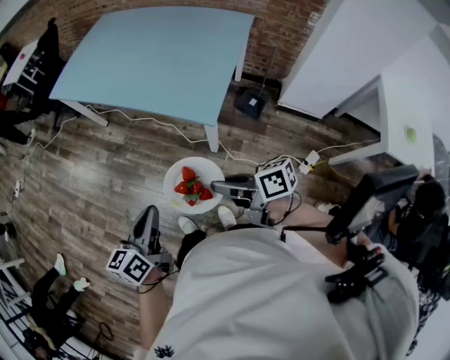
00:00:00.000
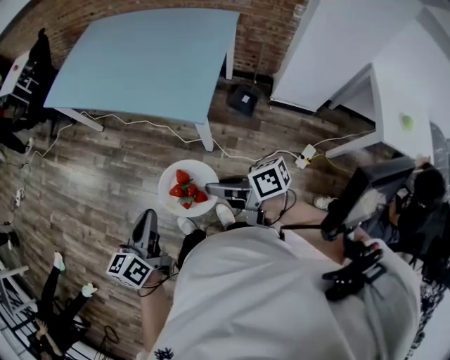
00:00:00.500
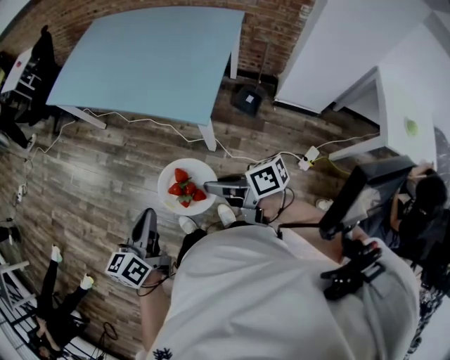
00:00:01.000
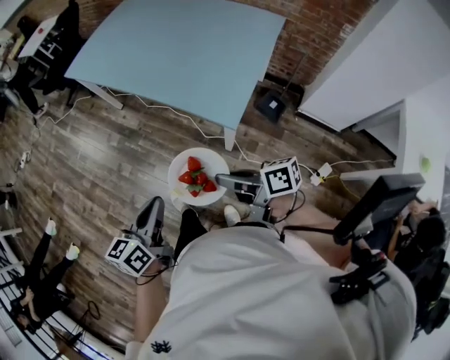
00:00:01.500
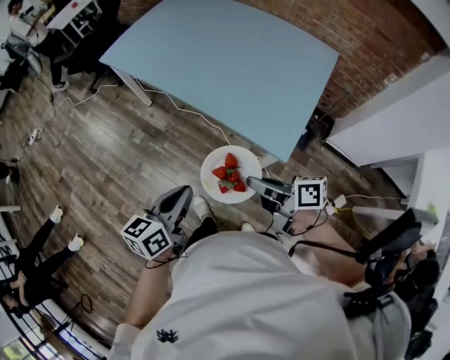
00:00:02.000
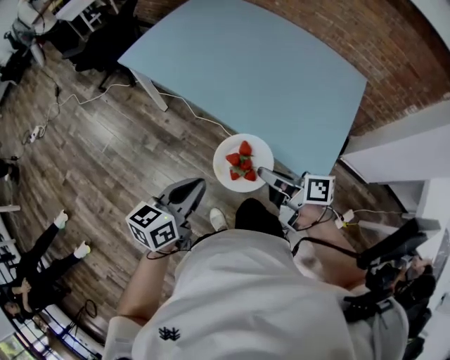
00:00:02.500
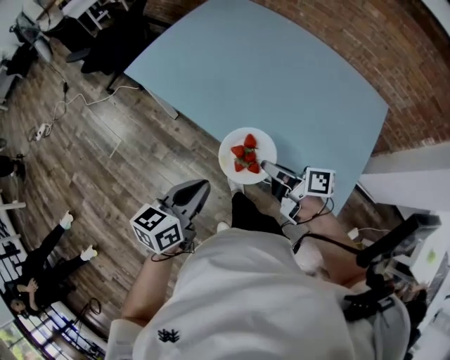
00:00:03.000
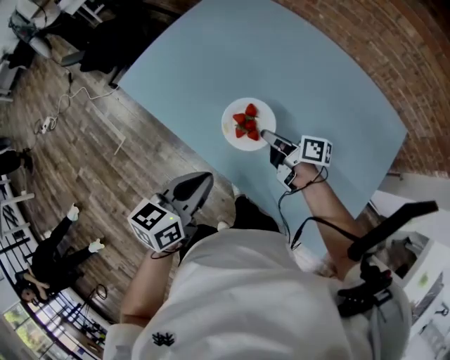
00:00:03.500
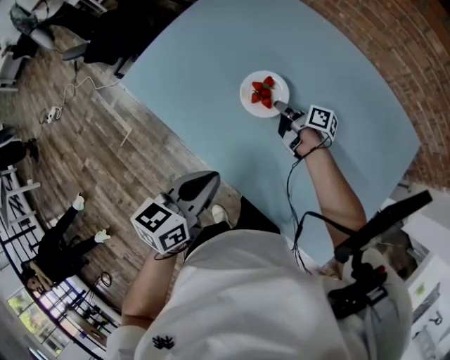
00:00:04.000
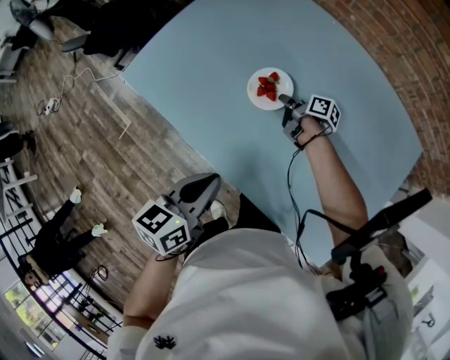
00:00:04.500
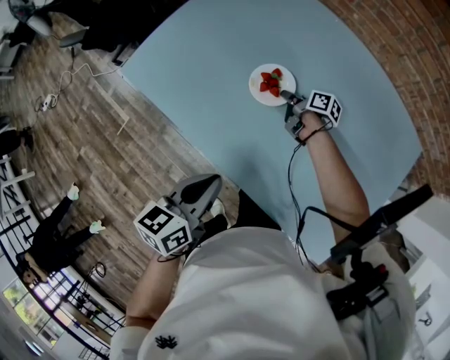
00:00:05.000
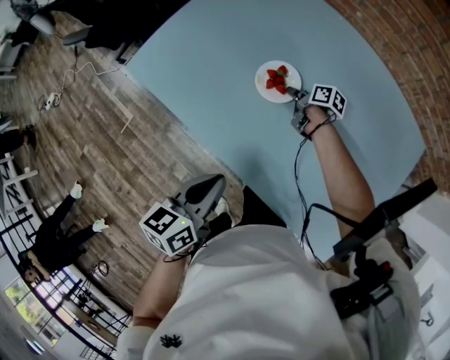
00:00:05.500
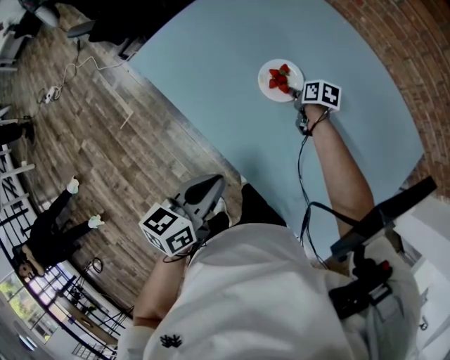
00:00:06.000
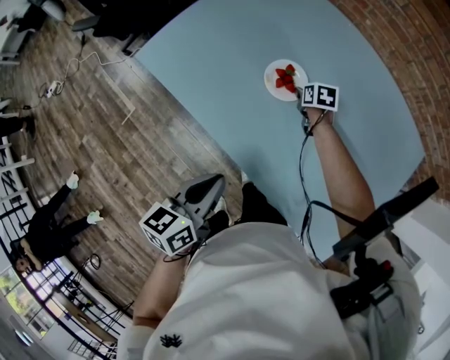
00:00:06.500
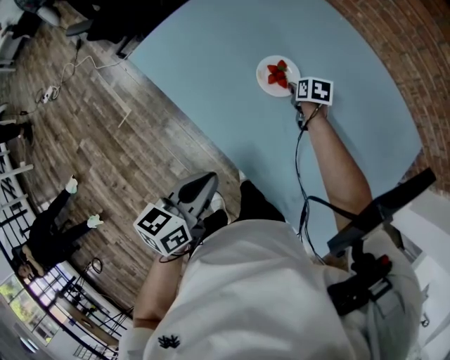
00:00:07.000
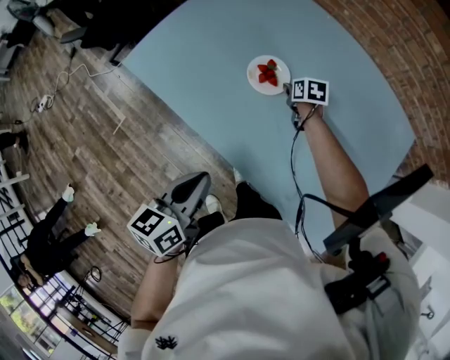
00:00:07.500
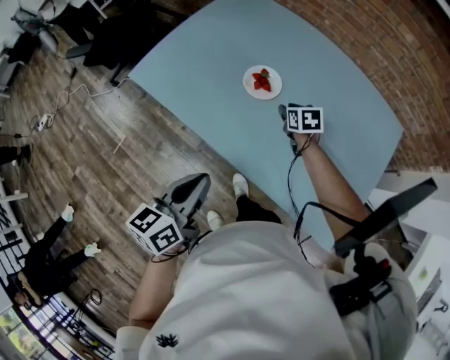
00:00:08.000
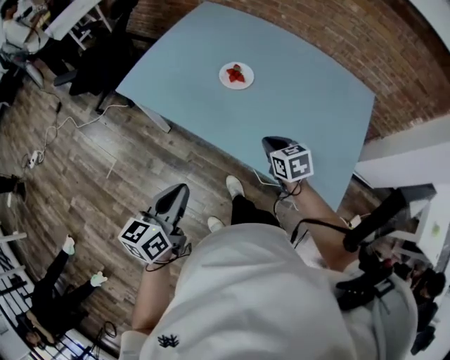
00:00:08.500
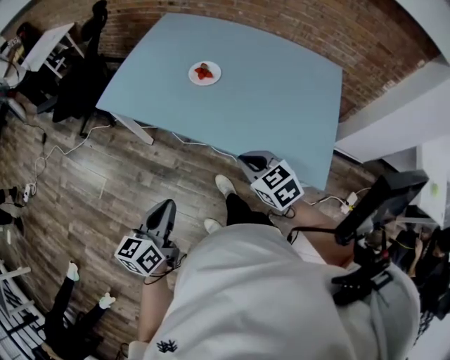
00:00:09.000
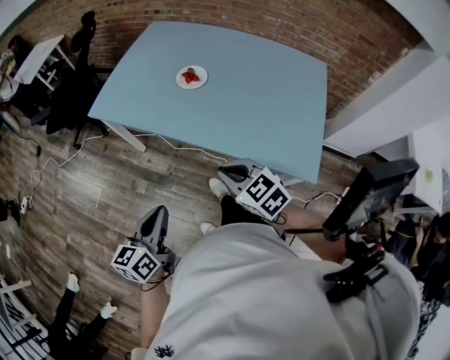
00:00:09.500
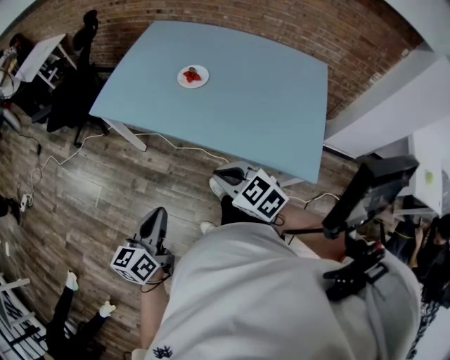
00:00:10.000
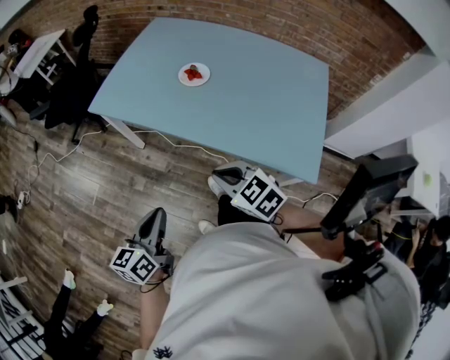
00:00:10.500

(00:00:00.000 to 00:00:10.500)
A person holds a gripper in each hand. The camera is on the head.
00:00:00.000 - 00:00:02.000: Both grippers travel together forward, some 15 cm.
00:00:02.000 - 00:00:04.000: The pair of grippers is taken forward, approximately 60 cm. The right gripper swivels approximately 30 degrees.
00:00:04.000 - 00:00:06.500: The right gripper ends up about 5 cm from where it was, angles its fingers downward, by roughly 40 degrees, and opens up; the left gripper shifts about 5 cm backward.
00:00:06.500 - 00:00:08.500: The right gripper is displaced backward and upward by some 35 cm, and closes up; the left gripper heads backward, covering approximately 15 cm.
00:00:08.500 - 00:00:10.500: The right gripper shifts roughly 25 cm backward, to the left and upward, and turns by some 20 degrees; the left gripper shifts some 10 cm backward.

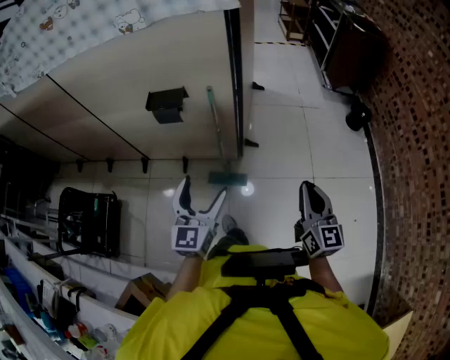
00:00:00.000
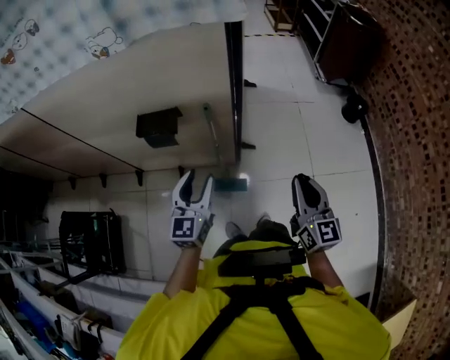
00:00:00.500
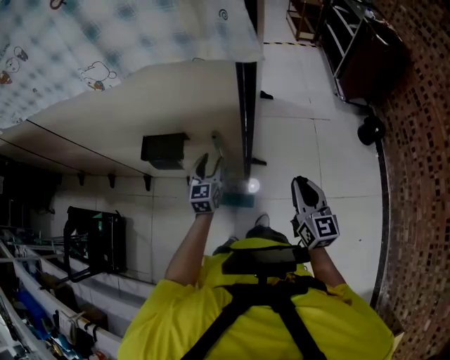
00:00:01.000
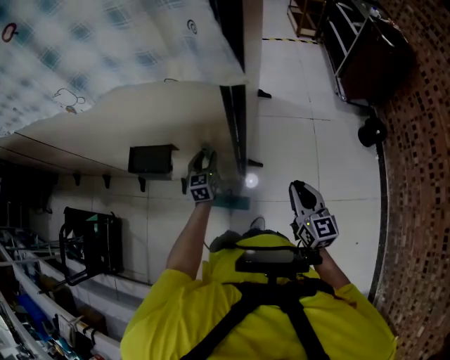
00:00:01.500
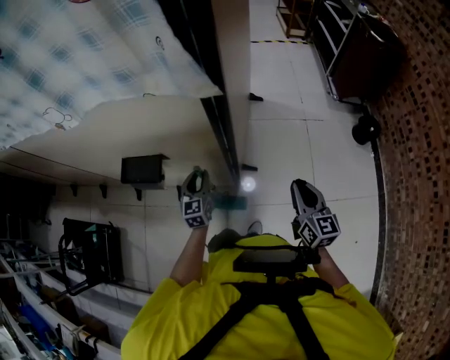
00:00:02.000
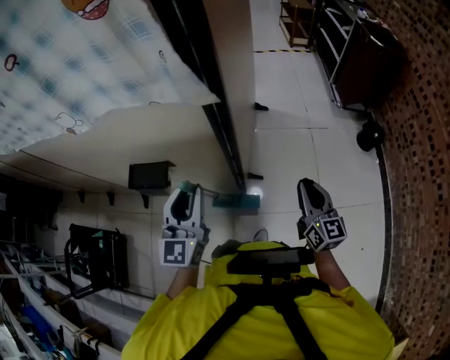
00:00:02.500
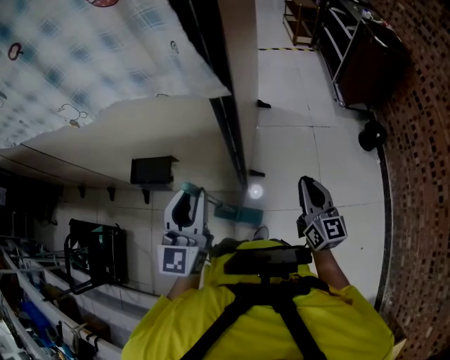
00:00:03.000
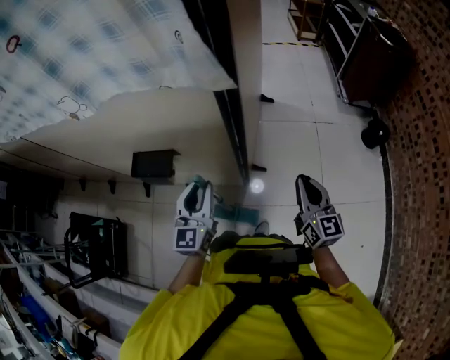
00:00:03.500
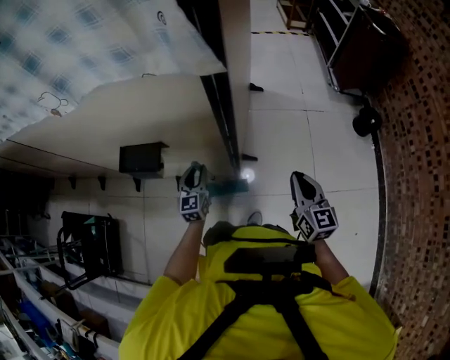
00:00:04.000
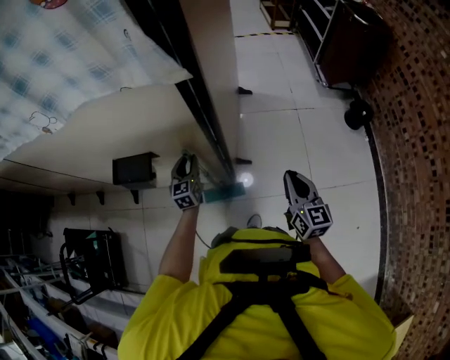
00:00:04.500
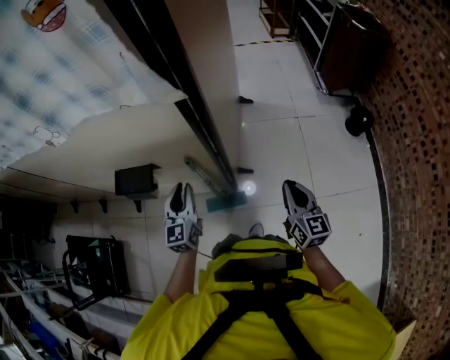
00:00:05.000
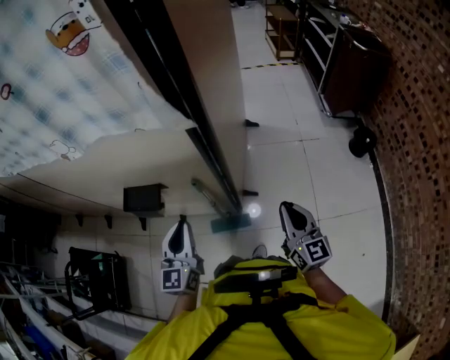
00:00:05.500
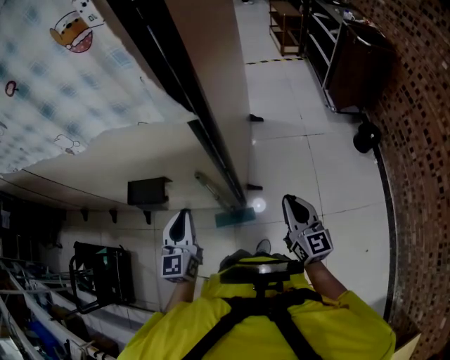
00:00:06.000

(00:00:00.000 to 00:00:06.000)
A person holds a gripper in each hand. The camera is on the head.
00:00:00.000 - 00:00:02.000: The left gripper heads forward and downward, covering about 50 cm, and closes its fingers. The right gripper goes roughly 35 cm forward.
00:00:02.000 - 00:00:04.000: The left gripper moves roughly 25 cm upward and comes back.
00:00:04.000 - 00:00:06.000: The left gripper is displaced upward and backward by about 20 cm, while the right gripper shifts by roughly 5 cm.

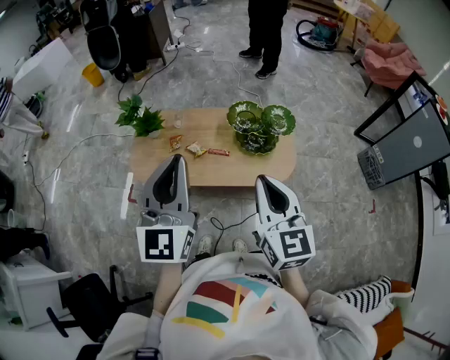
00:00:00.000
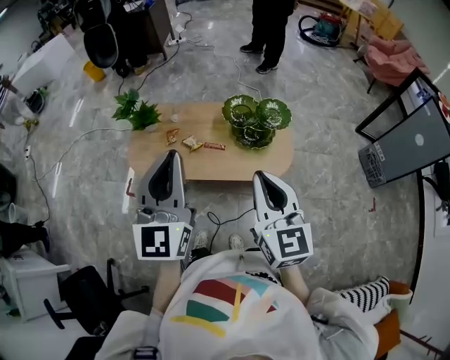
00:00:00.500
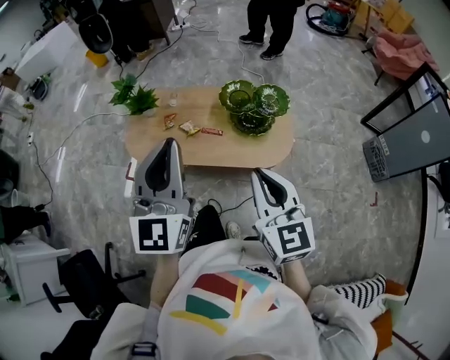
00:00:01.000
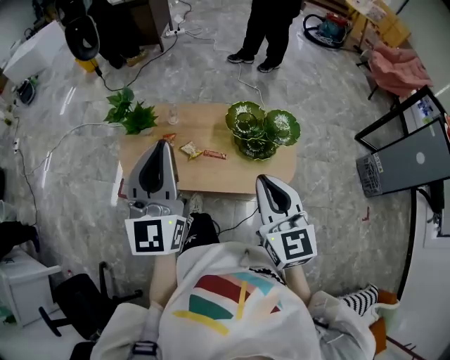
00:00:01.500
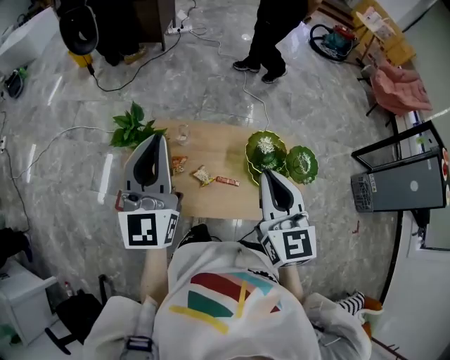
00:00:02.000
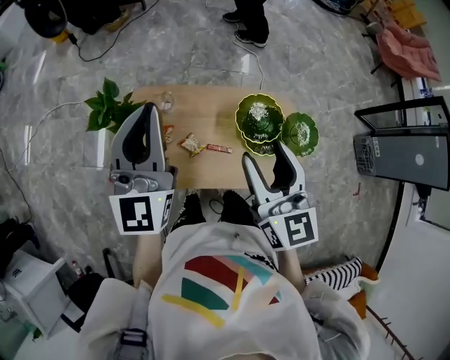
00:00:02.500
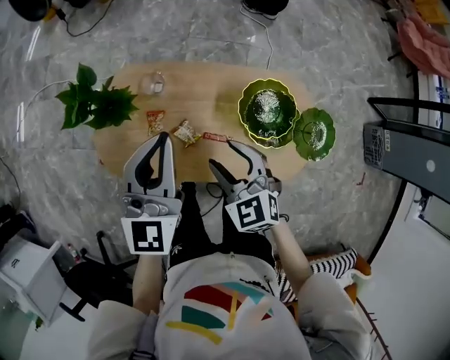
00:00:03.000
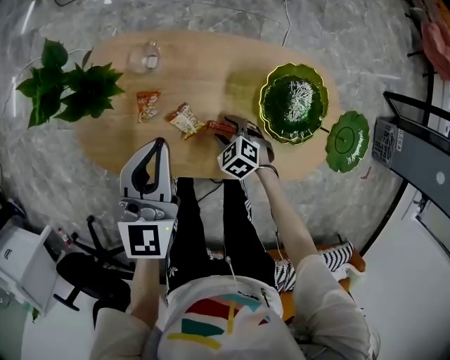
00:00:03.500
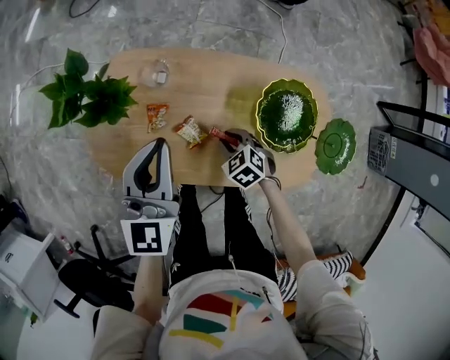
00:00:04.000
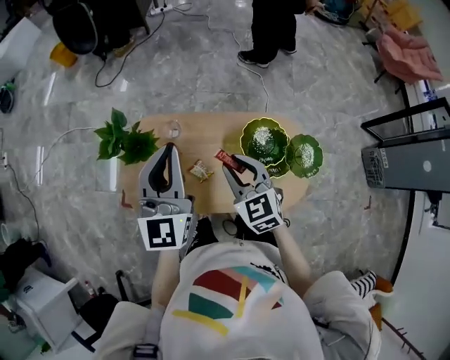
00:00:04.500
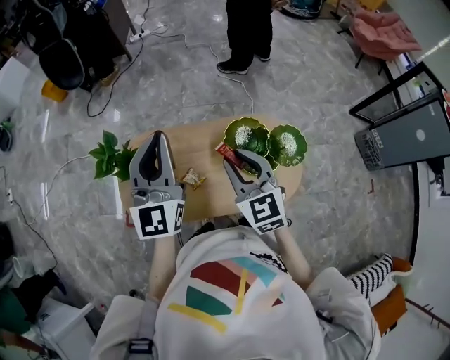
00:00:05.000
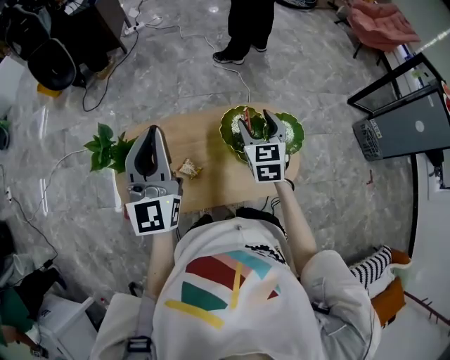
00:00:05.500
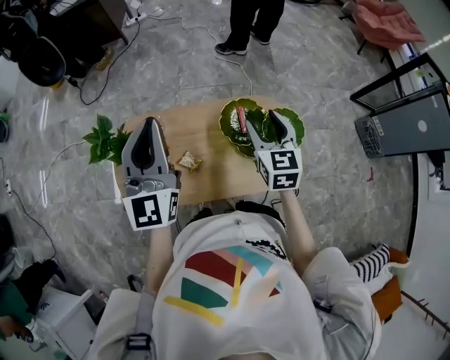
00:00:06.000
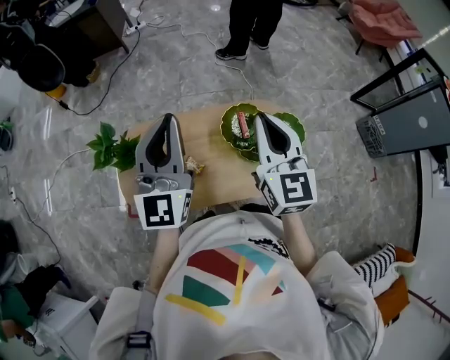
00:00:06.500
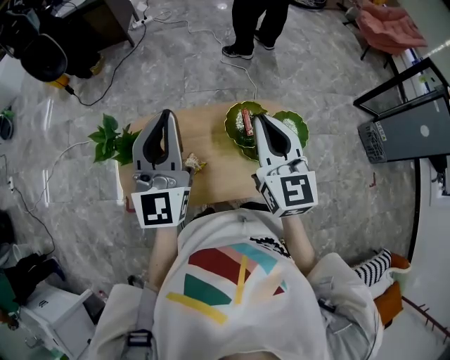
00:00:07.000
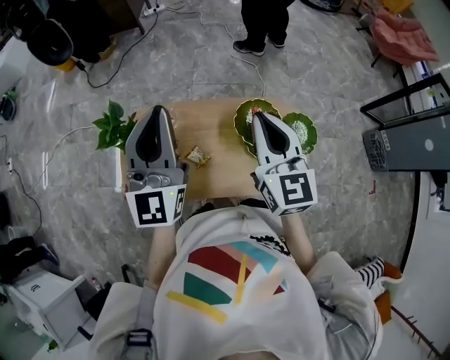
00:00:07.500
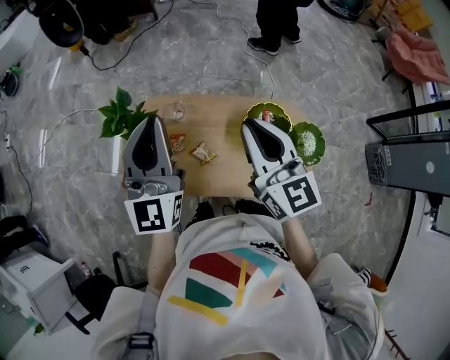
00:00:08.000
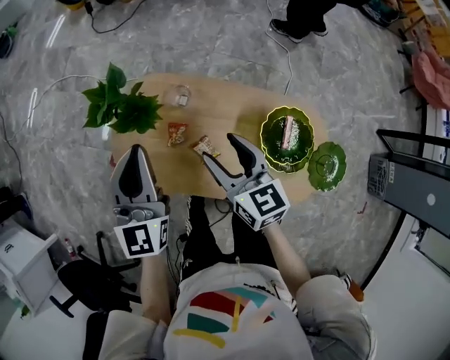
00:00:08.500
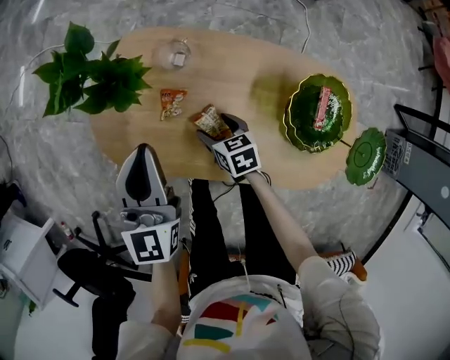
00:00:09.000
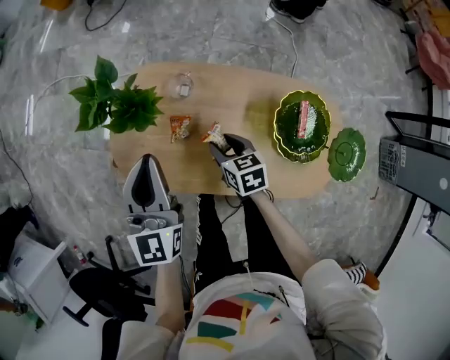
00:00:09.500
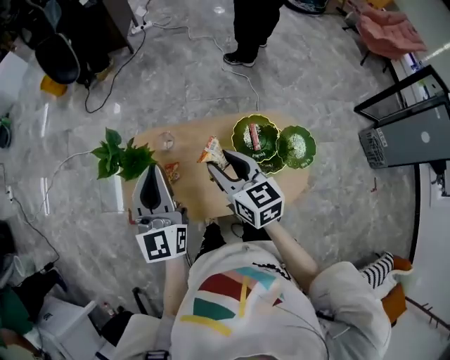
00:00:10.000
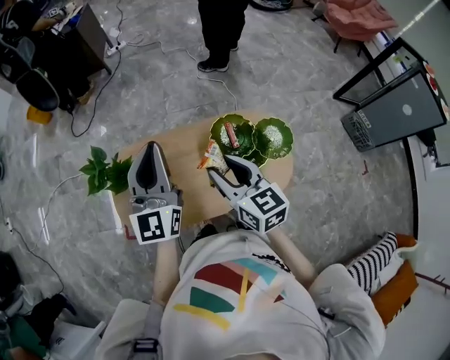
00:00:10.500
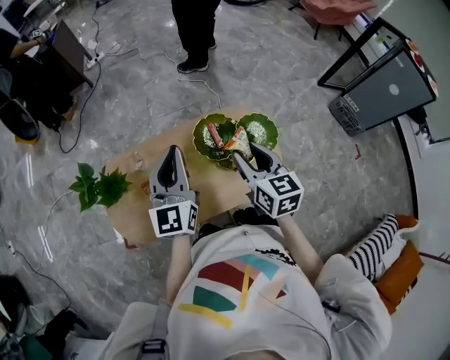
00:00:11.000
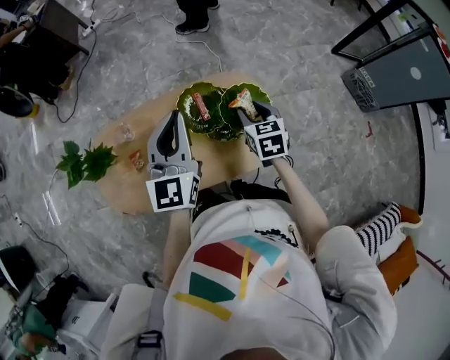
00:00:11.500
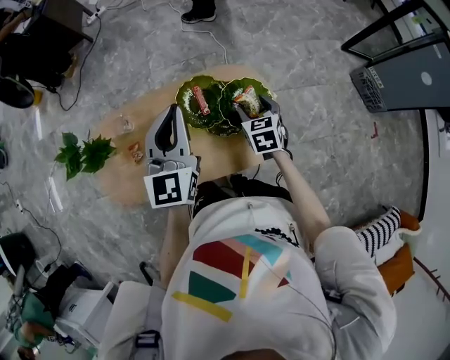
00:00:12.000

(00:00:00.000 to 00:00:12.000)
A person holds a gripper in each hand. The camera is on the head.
00:00:00.000 - 00:00:02.000: The right gripper heads forward, covering some 25 cm; the left gripper moves forward and to the left, roughly 30 cm.
00:00:02.000 - 00:00:04.000: The left gripper is displaced downward by roughly 30 cm, and changes its angle by approximately 20 degrees, while the right gripper shifts some 50 cm downward, tips its fingers downward by approximately 50 degrees, and opens, then closes again.
00:00:04.000 - 00:00:06.000: The right gripper shifts roughly 40 cm upward, tilts its fingers approximately 40 degrees upward, and opens up, while the left gripper moves upward, roughly 25 cm, and swivels about 20 degrees.
00:00:06.000 - 00:00:08.000: The left gripper goes roughly 5 cm to the left, while the right gripper travels to the left and upward by about 15 cm, turns by roughly 30 degrees, and closes its fingers.
00:00:08.000 - 00:00:10.000: The left gripper travels downward and back again, approximately 30 cm each way, while the right gripper goes downward and returns, approximately 50 cm each way, and opens up.
00:00:10.000 - 00:00:12.000: The right gripper moves to the right and downward, roughly 35 cm, and changes its angle by roughly 40 degrees, while the left gripper travels to the right by approximately 30 cm, and changes its angle by roughly 20 degrees.
